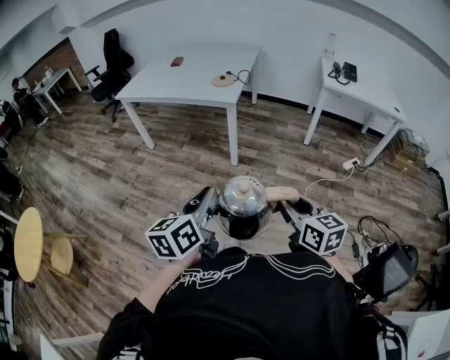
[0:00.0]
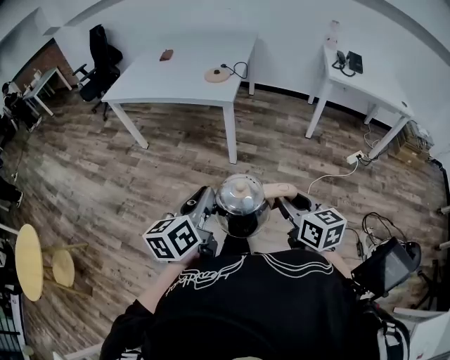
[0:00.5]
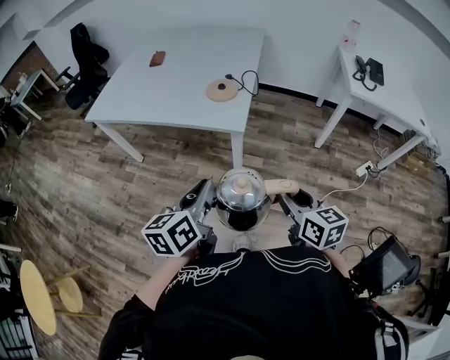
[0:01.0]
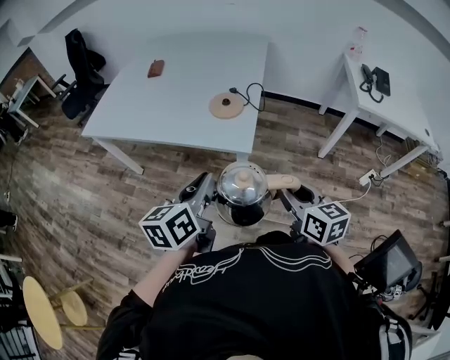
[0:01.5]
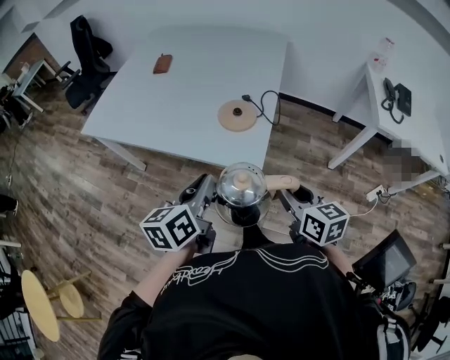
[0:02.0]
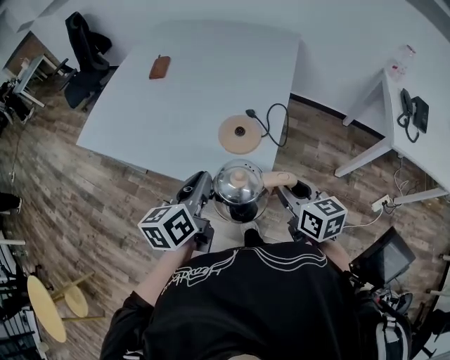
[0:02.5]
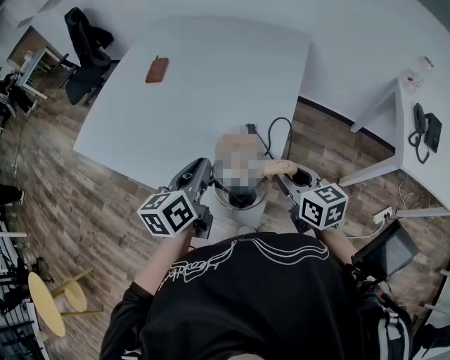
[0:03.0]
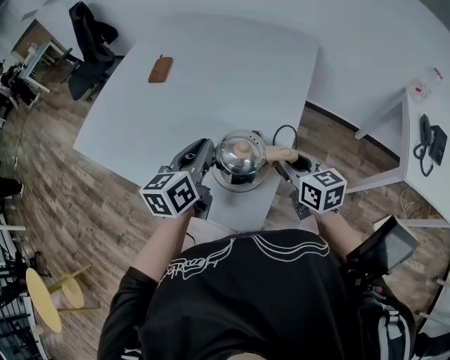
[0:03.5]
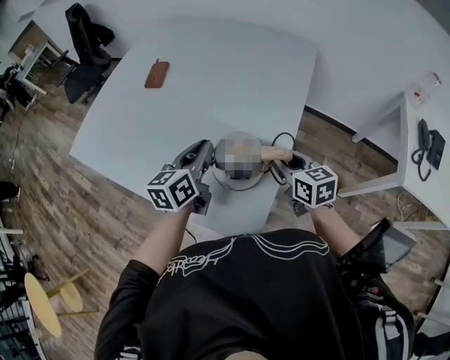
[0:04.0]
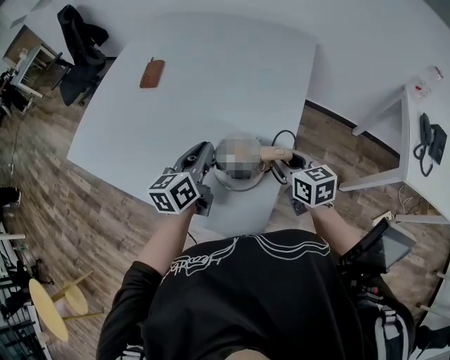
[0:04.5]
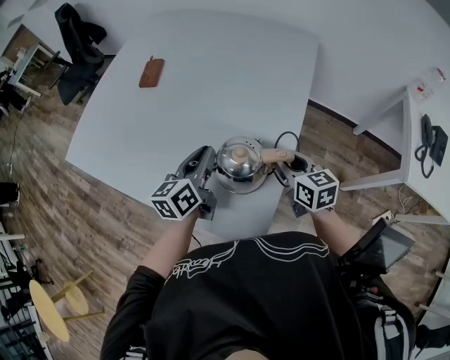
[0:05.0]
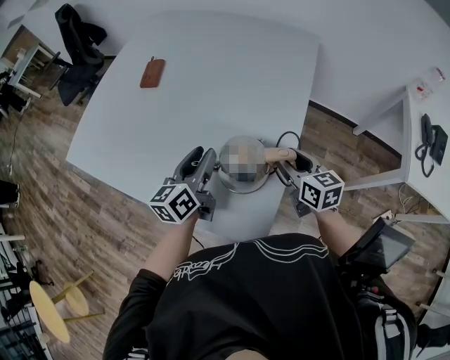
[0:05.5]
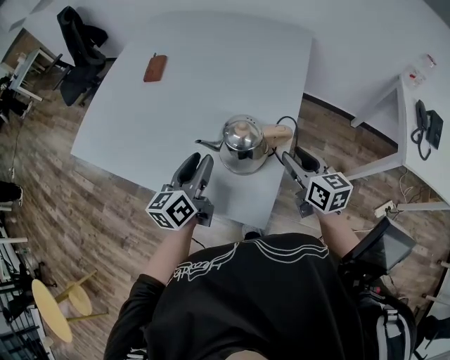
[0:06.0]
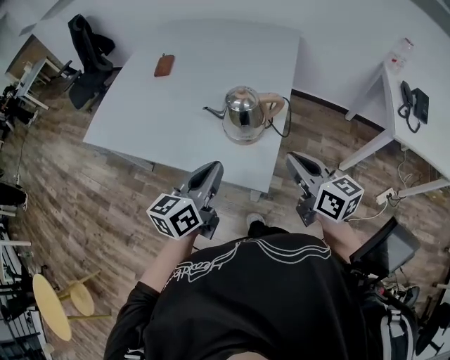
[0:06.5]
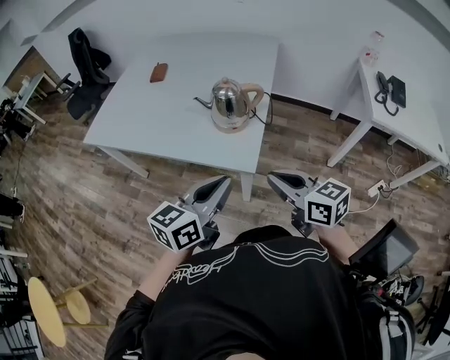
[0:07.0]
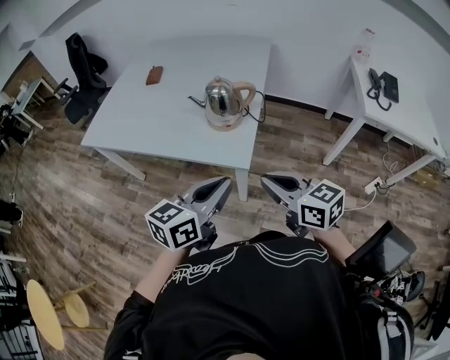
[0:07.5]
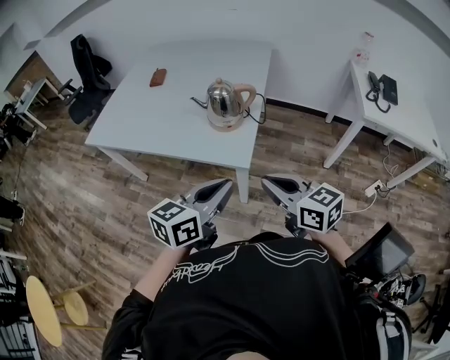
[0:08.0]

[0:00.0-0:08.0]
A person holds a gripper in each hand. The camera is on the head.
0:00.0 to 0:02.0: The pair of grippers is taken forward, about 60 cm.
0:02.0 to 0:04.0: Both grippers travel together forward, some 35 cm.
0:04.0 to 0:06.0: The grippers both shift backward by roughly 5 cm. The left gripper opens.
0:06.0 to 0:08.0: Both grippers move backward, some 35 cm. The right gripper closes, while the left gripper changes its angle by about 30 degrees, and closes its fingers.

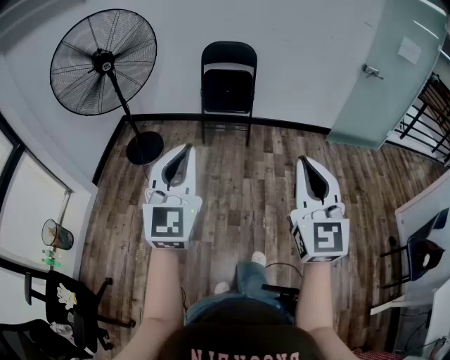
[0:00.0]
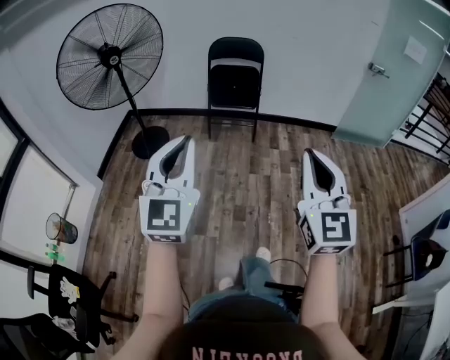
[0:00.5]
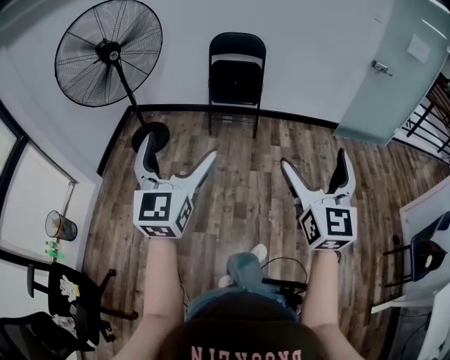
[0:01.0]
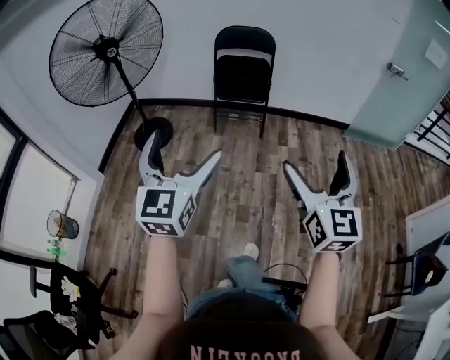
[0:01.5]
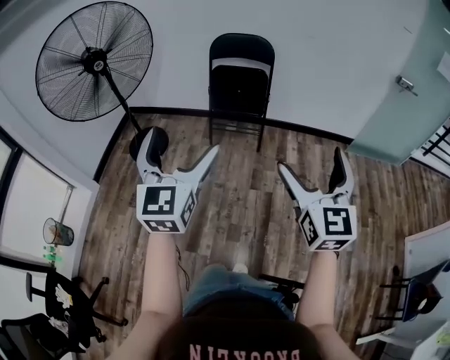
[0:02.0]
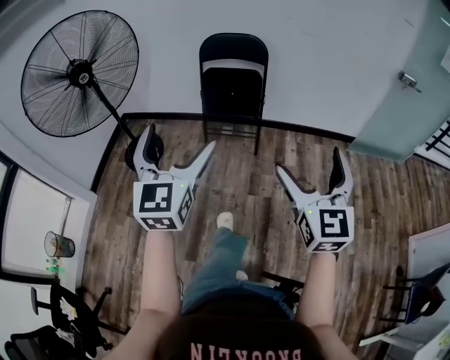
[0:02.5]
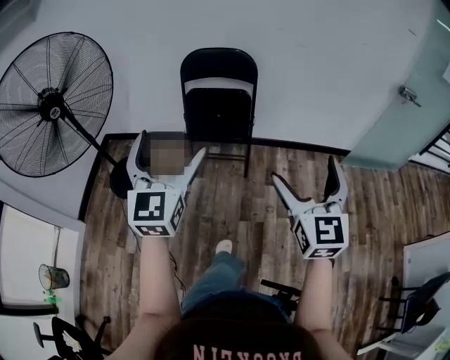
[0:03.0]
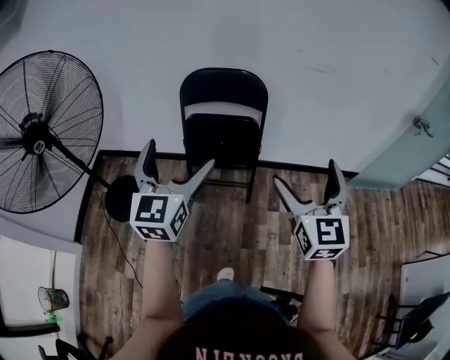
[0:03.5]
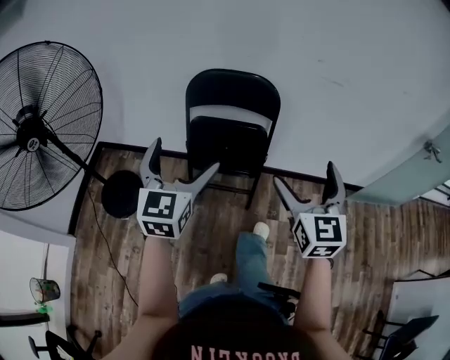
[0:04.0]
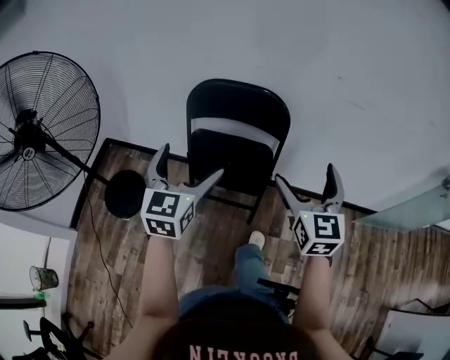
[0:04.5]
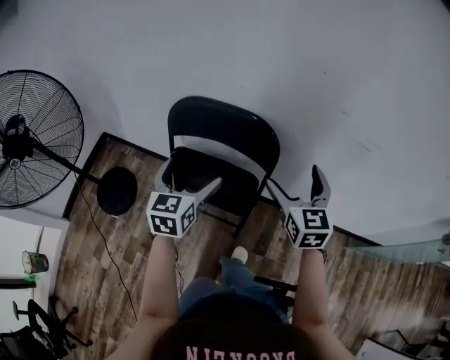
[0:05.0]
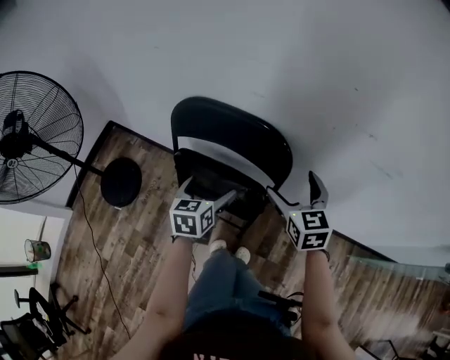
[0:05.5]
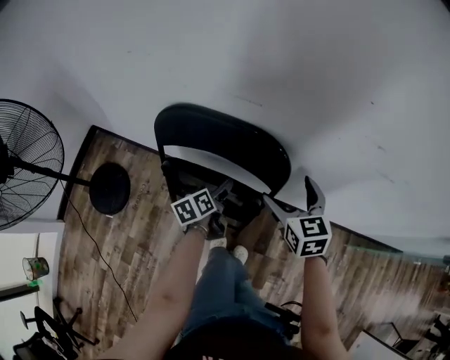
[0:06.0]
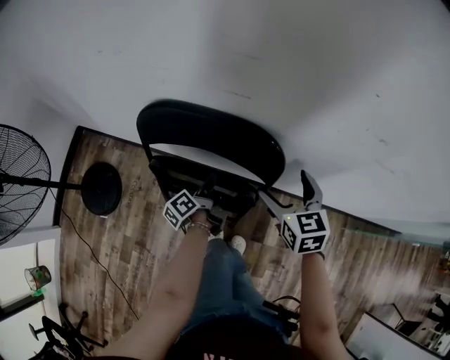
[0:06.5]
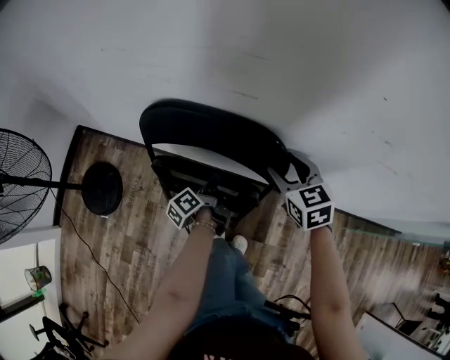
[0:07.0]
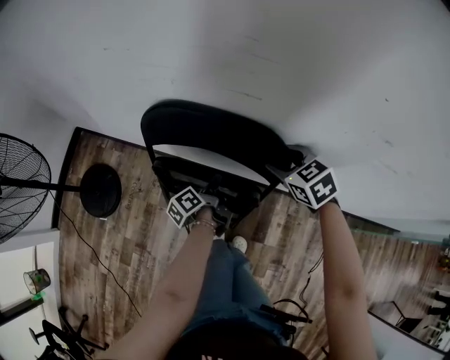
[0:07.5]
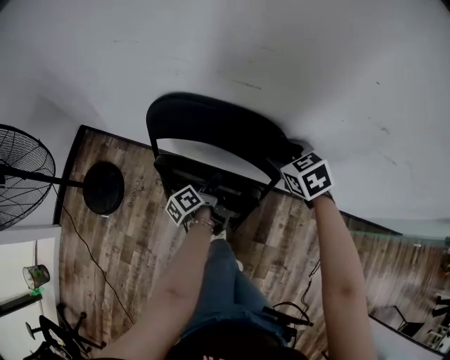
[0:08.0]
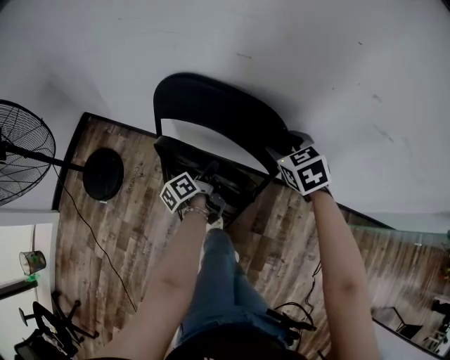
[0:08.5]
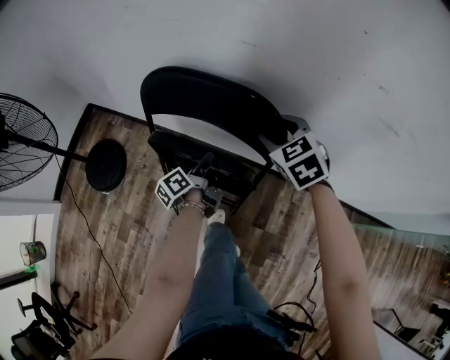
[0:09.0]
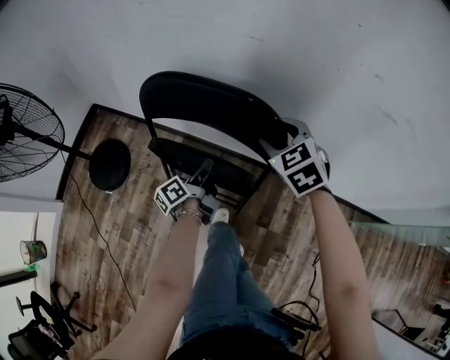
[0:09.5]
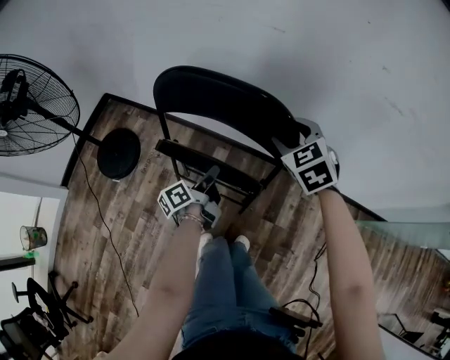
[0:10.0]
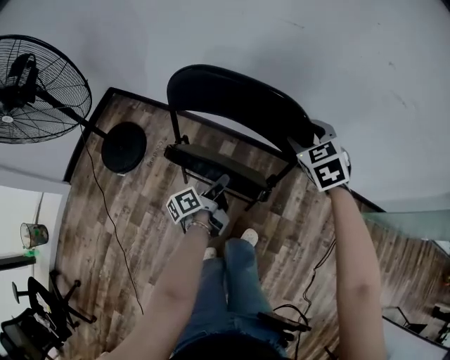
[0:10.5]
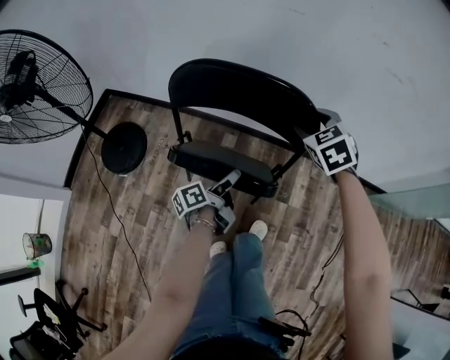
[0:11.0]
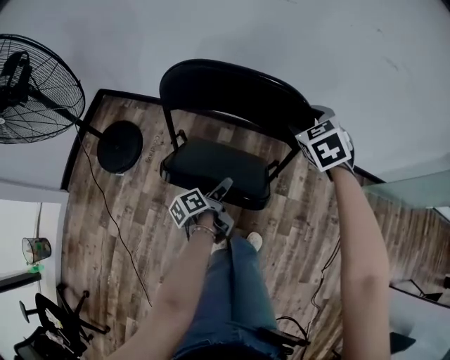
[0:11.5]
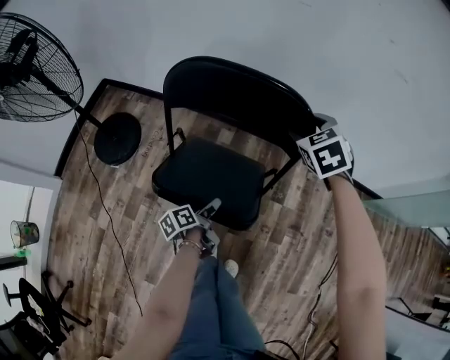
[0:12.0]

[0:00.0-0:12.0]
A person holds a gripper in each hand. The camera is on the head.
0:00.0 to 0:02.0: The grippers both shift forward by roughly 30 cm. The left gripper opens. Meanwhile the right gripper opens its fingers.
0:02.0 to 0:04.0: Both grippers are carried forward, approximately 60 cm.
0:04.0 to 0:06.0: The grippers both shift forward and downward by approximately 50 cm. The right gripper rotates about 30 degrees. The left gripper rotates around the line of its fingers by about 60 degrees, counterclockwise from behind.
0:06.0 to 0:08.0: The right gripper heads forward, covering about 5 cm, changes its angle by approximately 30 degrees, and closes its fingers; the left gripper turns by approximately 30 degrees, and closes up.
0:08.0 to 0:10.0: The right gripper goes some 15 cm backward and to the left. The left gripper is displaced backward by about 20 cm.
0:10.0 to 0:12.0: The left gripper moves backward and downward, approximately 30 cm, swivels roughly 20 degrees, and opens up. Meanwhile the right gripper goes some 10 cm backward.

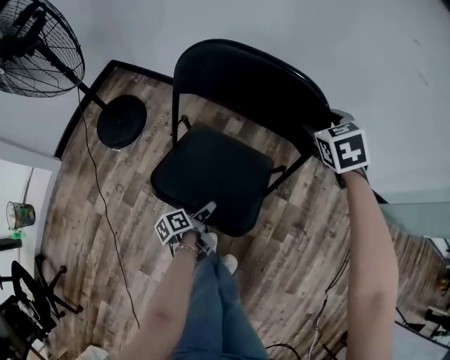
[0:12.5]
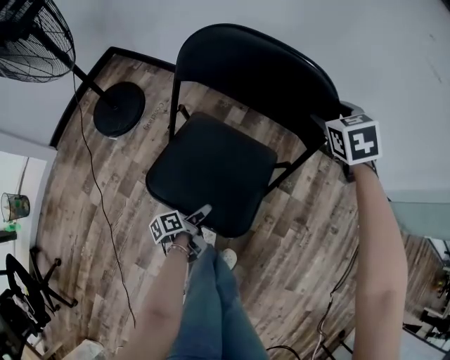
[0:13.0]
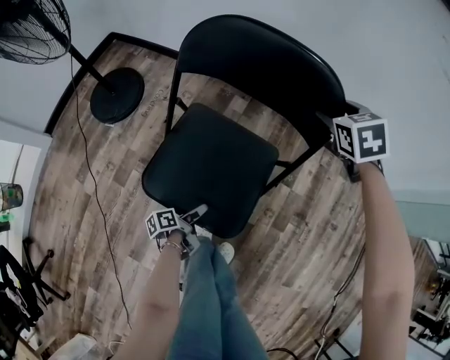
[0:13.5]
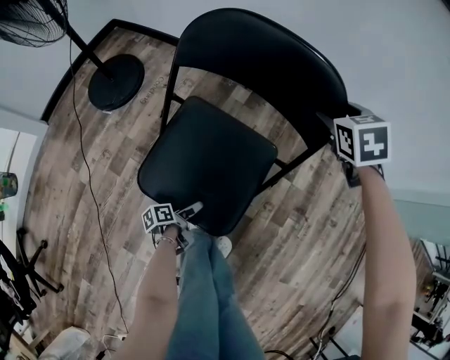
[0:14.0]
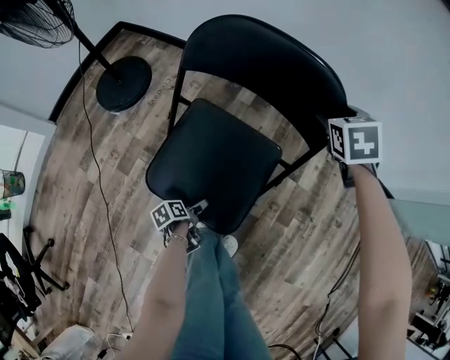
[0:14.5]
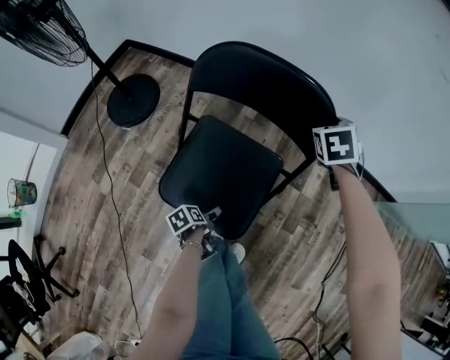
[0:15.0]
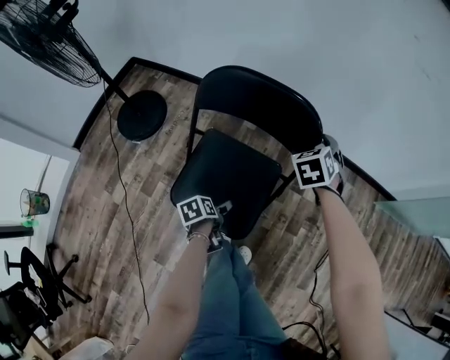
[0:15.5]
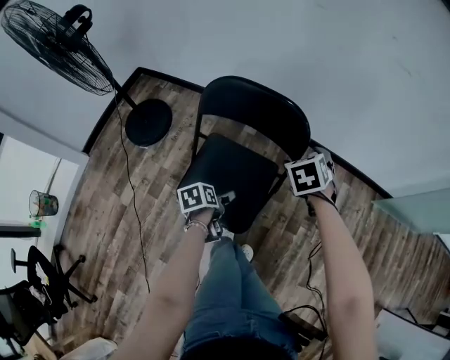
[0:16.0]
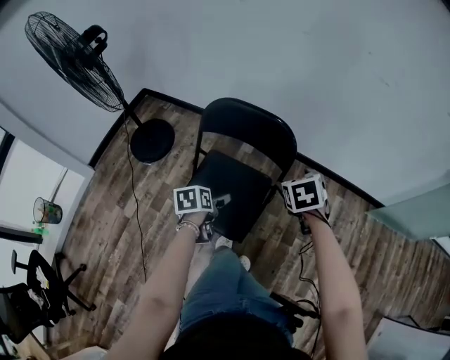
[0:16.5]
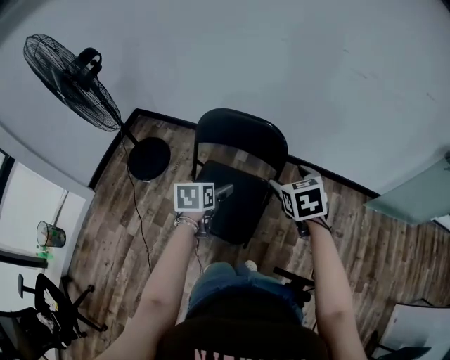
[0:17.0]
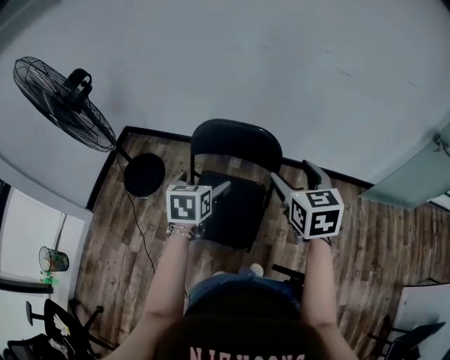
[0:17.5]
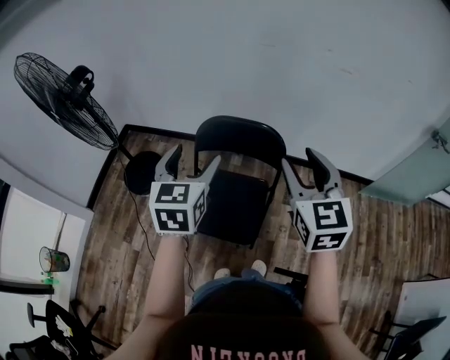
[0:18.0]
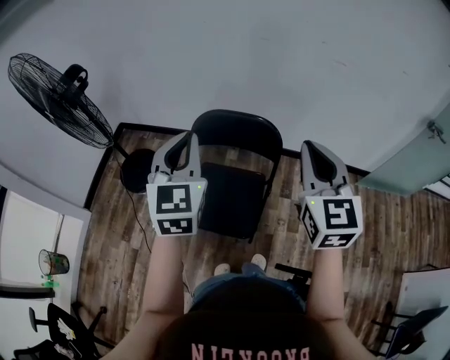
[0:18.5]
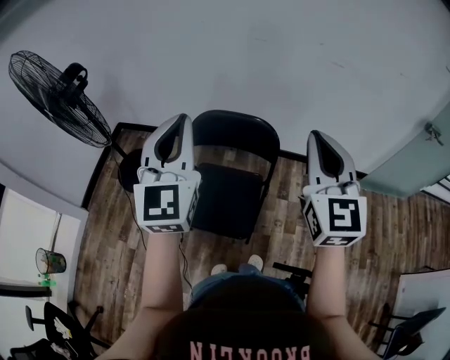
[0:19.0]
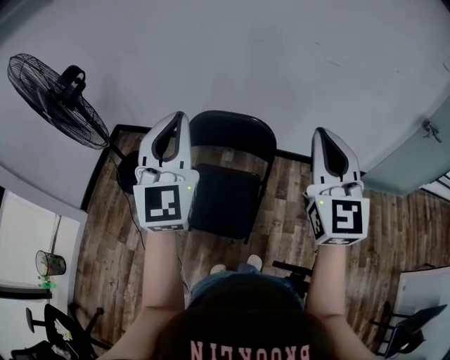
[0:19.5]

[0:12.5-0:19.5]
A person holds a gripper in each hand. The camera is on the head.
0:12.5 to 0:14.5: The right gripper moves downward, about 10 cm. Meanwhile the left gripper travels downward and backward by about 20 cm, swivels about 20 degrees, and opens its fingers.
0:14.5 to 0:16.0: The left gripper moves upward, about 25 cm, and rotates approximately 30 degrees. The right gripper heads backward and upward, covering some 15 cm.
0:16.0 to 0:17.5: The left gripper goes approximately 30 cm upward, and rolls clockwise, seen from behind, by some 50 degrees, while the right gripper moves upward and backward, about 30 cm, and tilts its fingers roughly 30 degrees upward.
0:17.5 to 0:19.5: The left gripper goes some 25 cm upward, points its fingers approximately 50 degrees further upward, and closes. Meanwhile the right gripper travels upward and backward by some 15 cm, tilts its fingers about 30 degrees upward, and closes its fingers.
